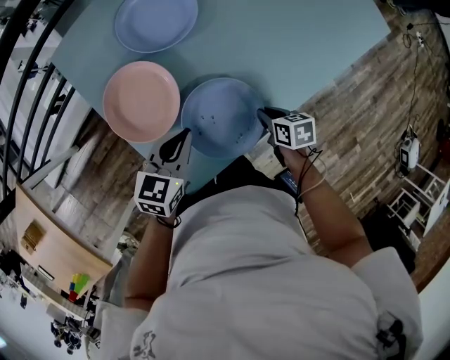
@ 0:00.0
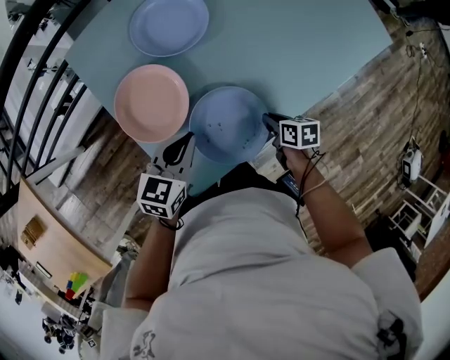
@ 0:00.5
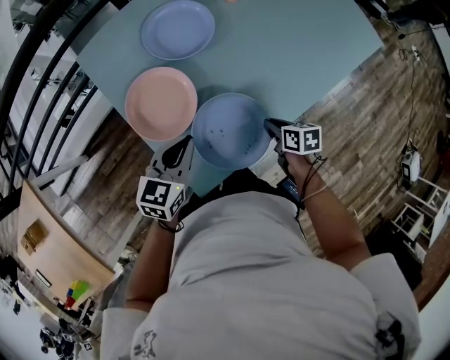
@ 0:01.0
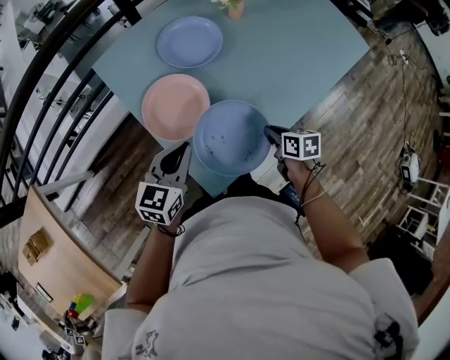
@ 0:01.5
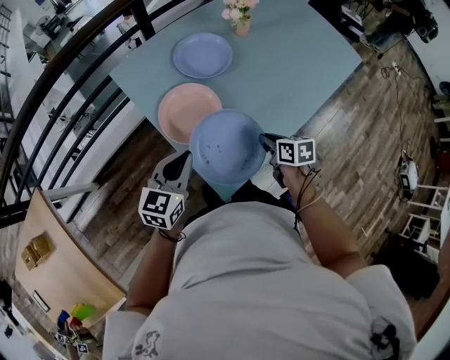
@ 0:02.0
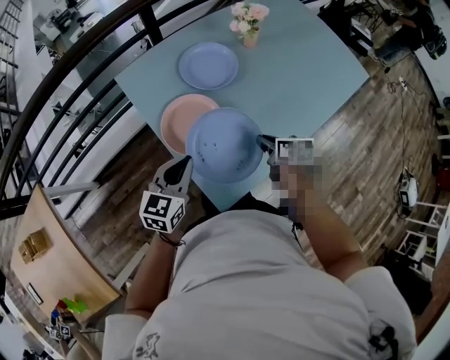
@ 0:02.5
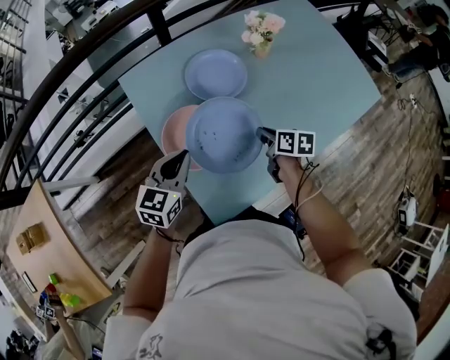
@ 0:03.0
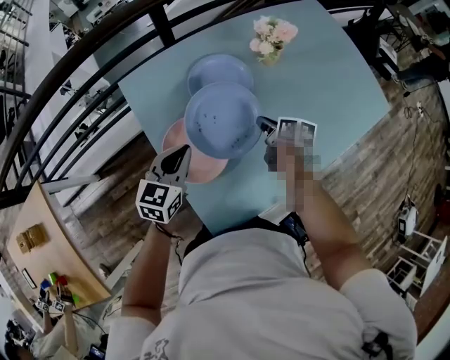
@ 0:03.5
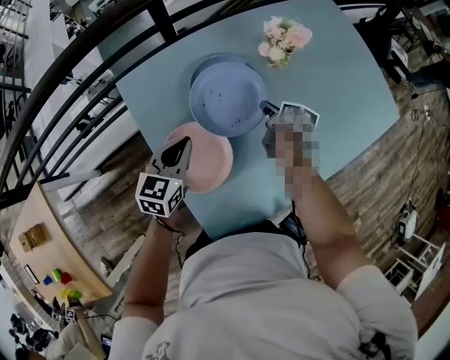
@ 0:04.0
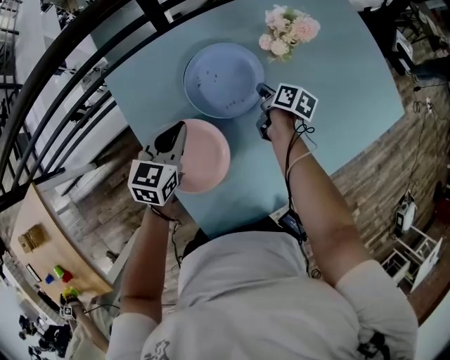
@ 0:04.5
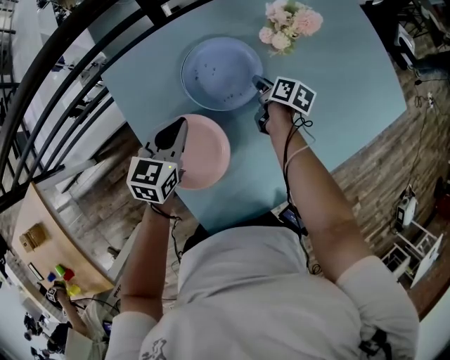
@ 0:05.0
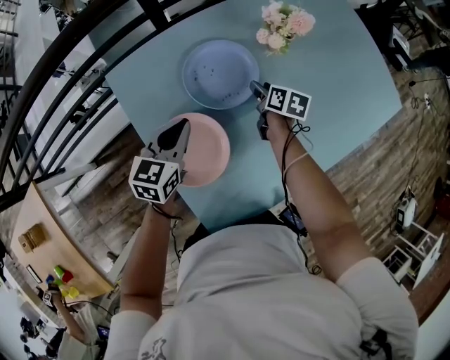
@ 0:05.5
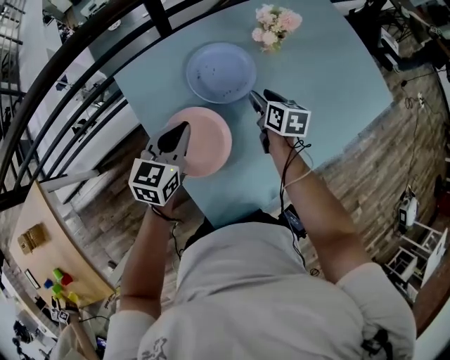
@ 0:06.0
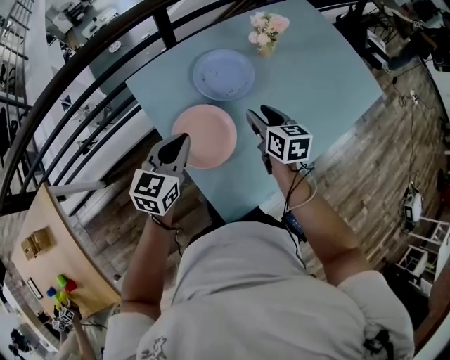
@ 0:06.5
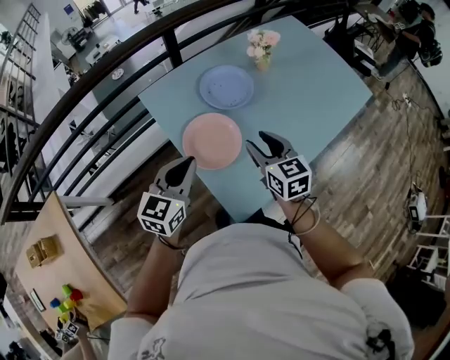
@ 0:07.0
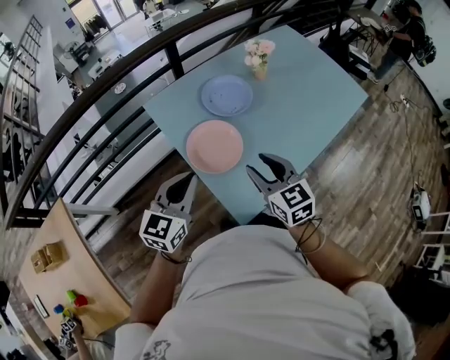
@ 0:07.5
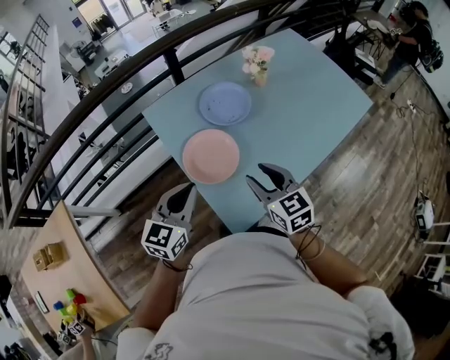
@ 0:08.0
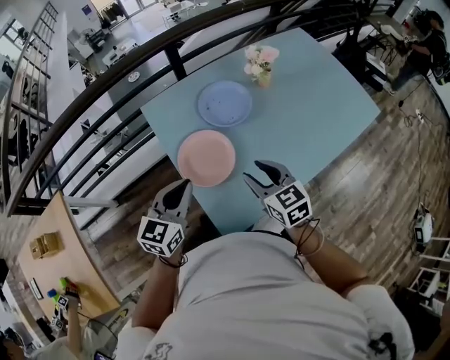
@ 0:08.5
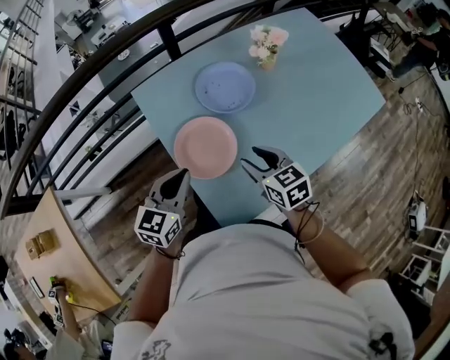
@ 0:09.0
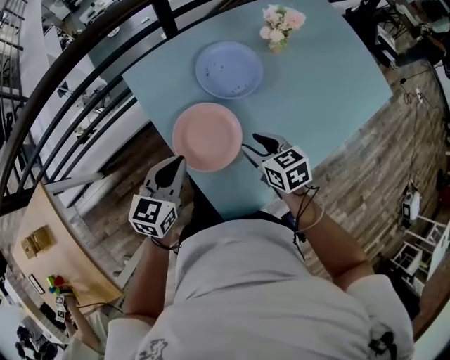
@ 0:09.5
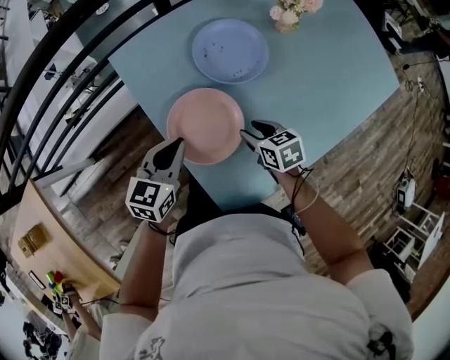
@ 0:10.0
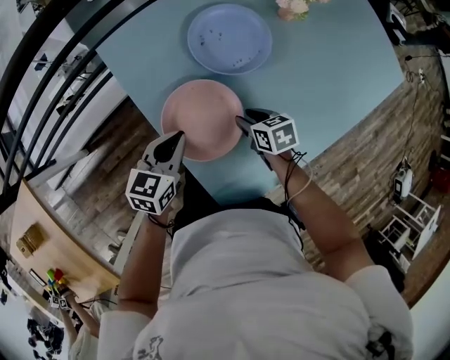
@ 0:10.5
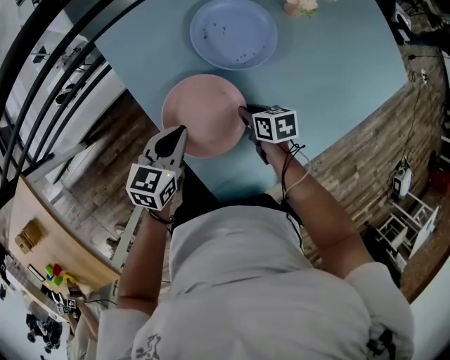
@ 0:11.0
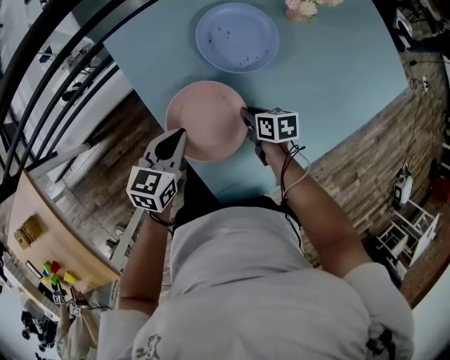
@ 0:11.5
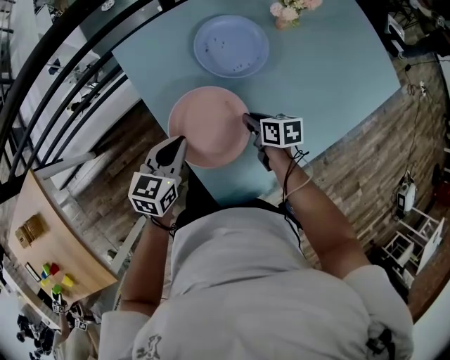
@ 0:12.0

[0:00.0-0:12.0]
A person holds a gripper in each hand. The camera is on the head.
0:00.0 to 0:02.0: The right gripper moves upward and to the left, about 15 cm. The left gripper heads to the left, upward and backward, covering approximately 20 cm.
0:02.0 to 0:04.0: Both grippers move forward, roughly 25 cm.
0:04.0 to 0:06.0: The right gripper is displaced upward by roughly 5 cm, swivels roughly 20 degrees, and opens up.
0:06.0 to 0:08.0: The two grippers go some 30 cm backward and upward. The right gripper changes its angle by about 30 degrees.
0:08.0 to 0:10.0: The grippers both shift downward and forward by some 25 cm. The right gripper changes its angle by about 30 degrees.
0:10.0 to 0:12.0: The right gripper moves approximately 10 cm downward and comes back, and closes up.

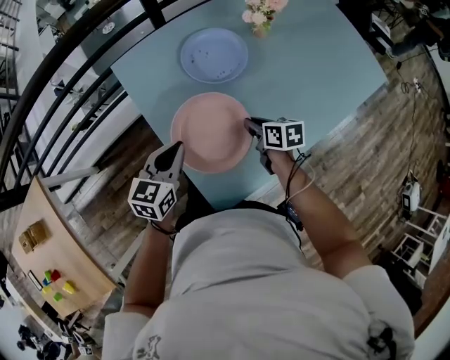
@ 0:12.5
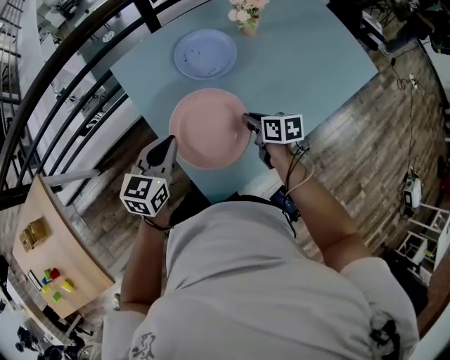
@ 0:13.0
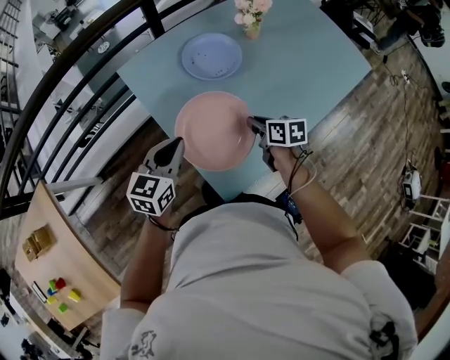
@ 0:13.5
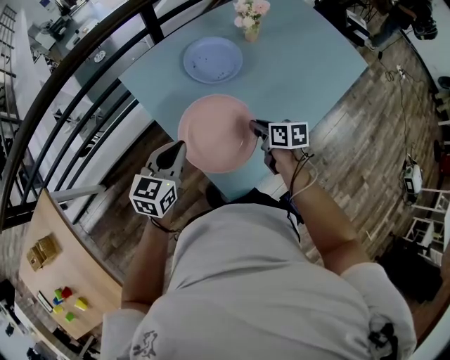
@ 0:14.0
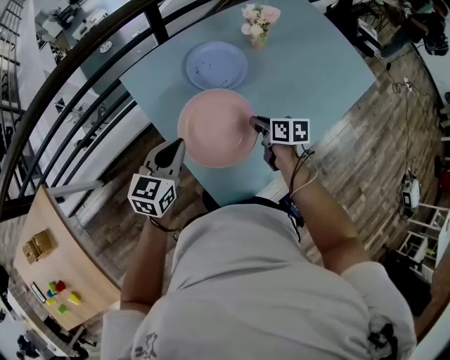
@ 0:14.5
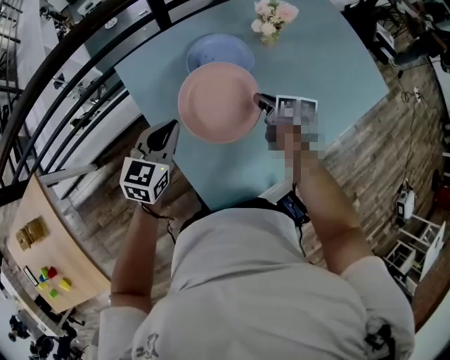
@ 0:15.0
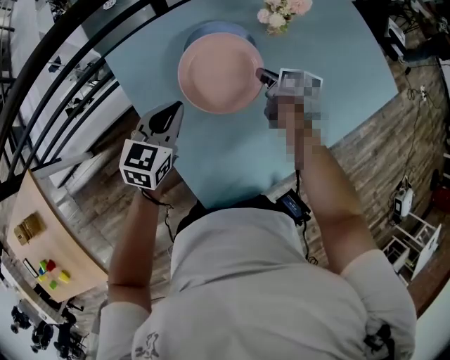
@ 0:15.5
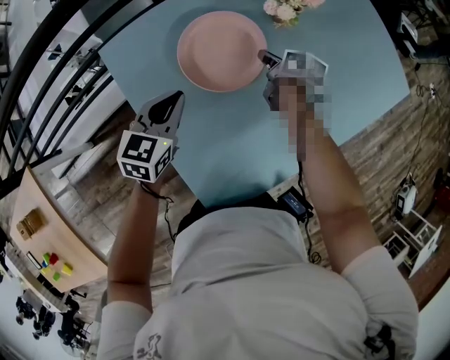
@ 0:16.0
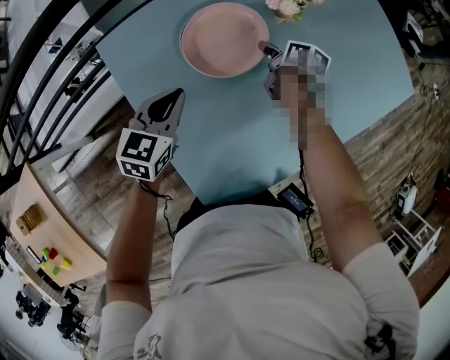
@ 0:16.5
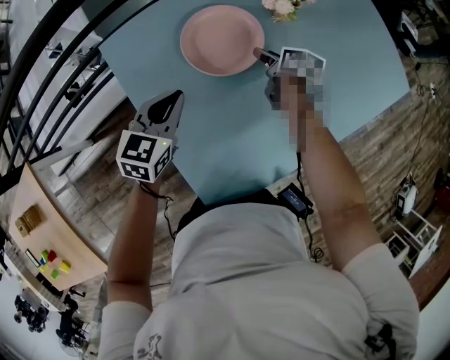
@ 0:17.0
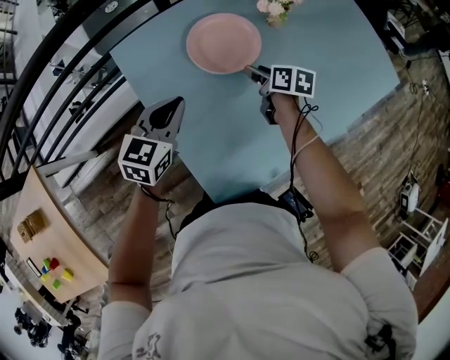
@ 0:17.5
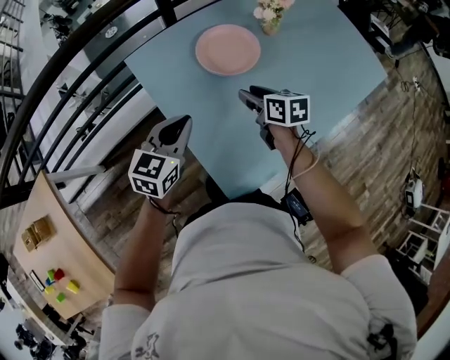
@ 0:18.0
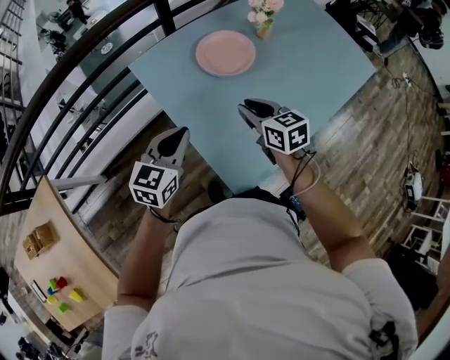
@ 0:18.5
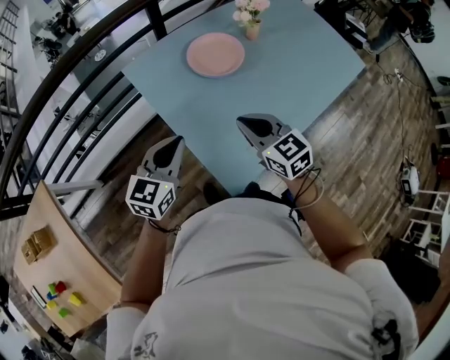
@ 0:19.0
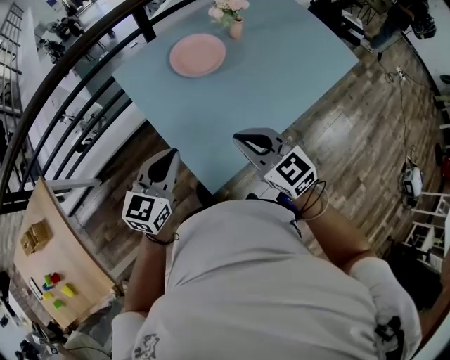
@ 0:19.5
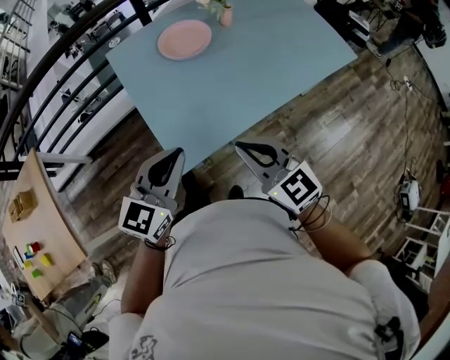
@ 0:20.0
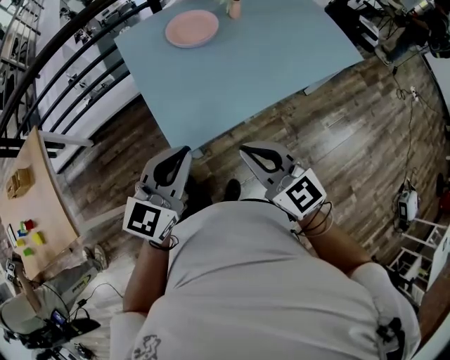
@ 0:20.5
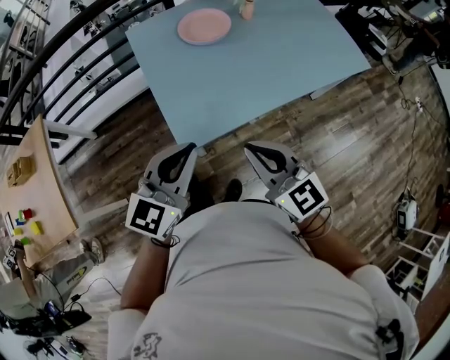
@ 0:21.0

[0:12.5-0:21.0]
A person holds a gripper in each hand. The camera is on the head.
0:12.5 to 0:14.5: The left gripper shifts by some 5 cm.
0:14.5 to 0:16.5: The left gripper is displaced forward and downward by some 15 cm; the right gripper travels forward by roughly 25 cm.
0:16.5 to 0:19.0: The left gripper shifts about 25 cm backward and upward, while the right gripper goes some 40 cm backward and upward, rolls counterclockwise, seen from behind, by some 60 degrees, and opens and closes again.
0:19.0 to 0:21.0: Both grippers travel together backward and to the right, about 30 cm.

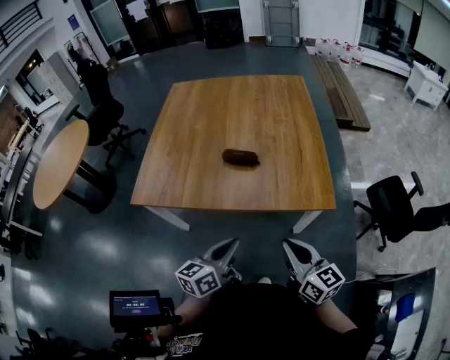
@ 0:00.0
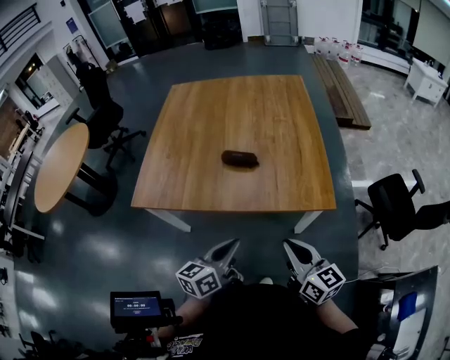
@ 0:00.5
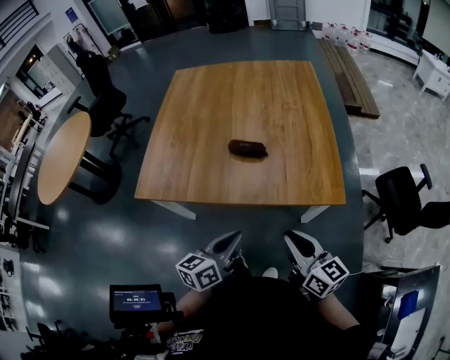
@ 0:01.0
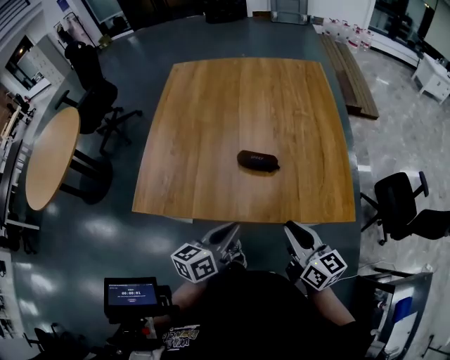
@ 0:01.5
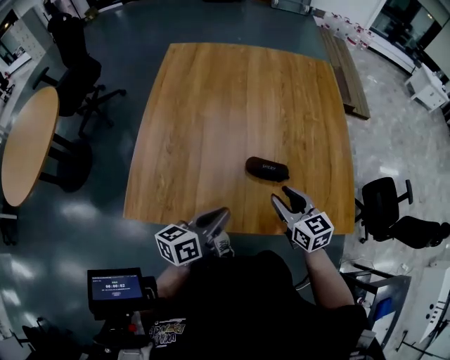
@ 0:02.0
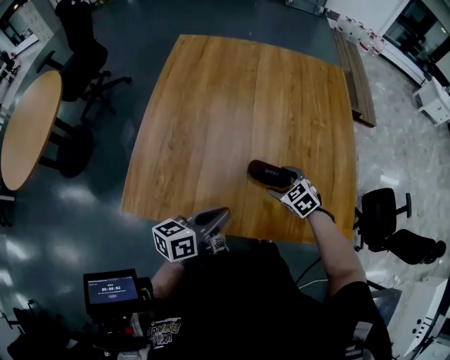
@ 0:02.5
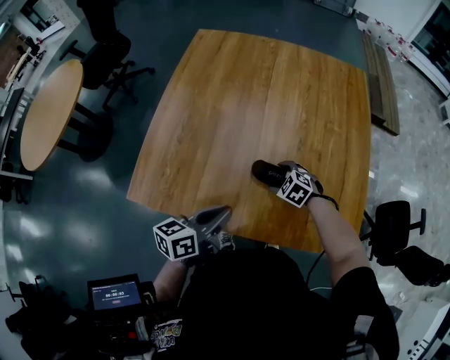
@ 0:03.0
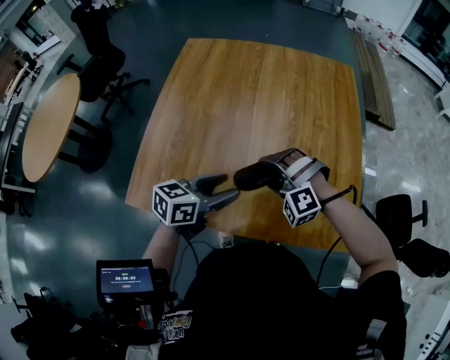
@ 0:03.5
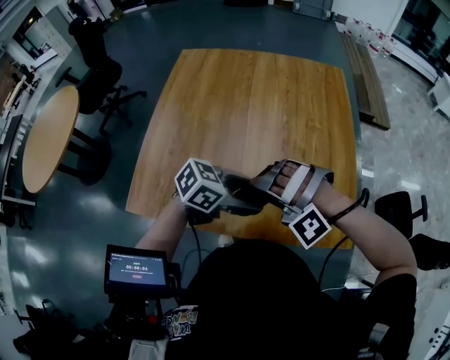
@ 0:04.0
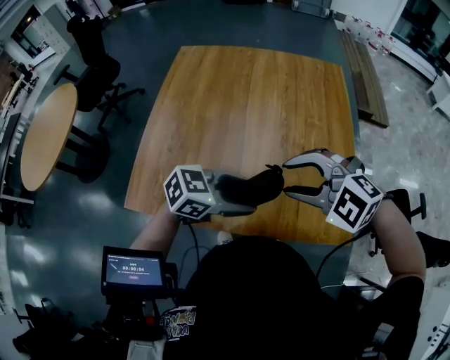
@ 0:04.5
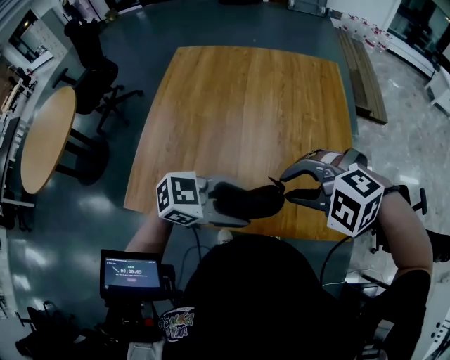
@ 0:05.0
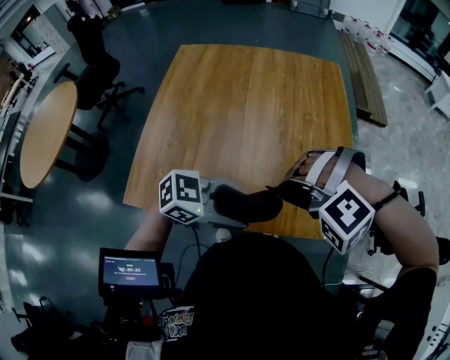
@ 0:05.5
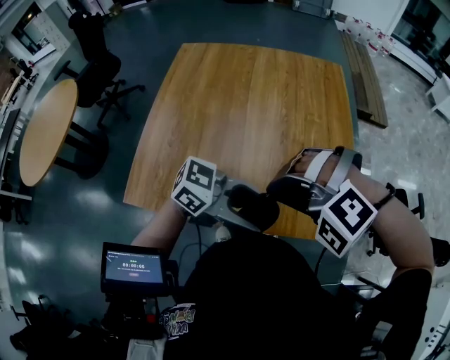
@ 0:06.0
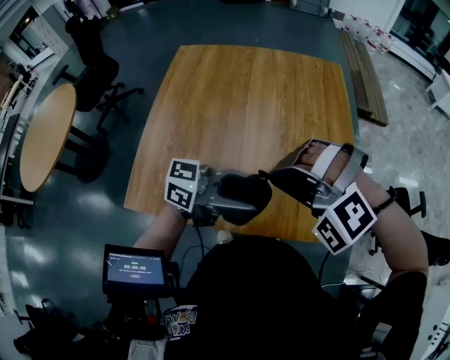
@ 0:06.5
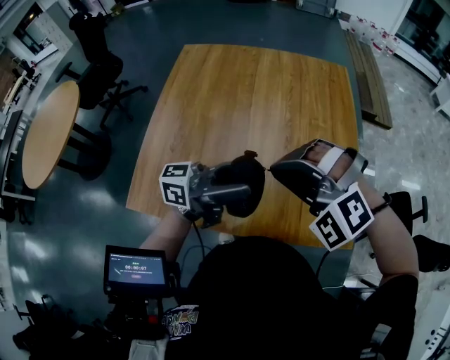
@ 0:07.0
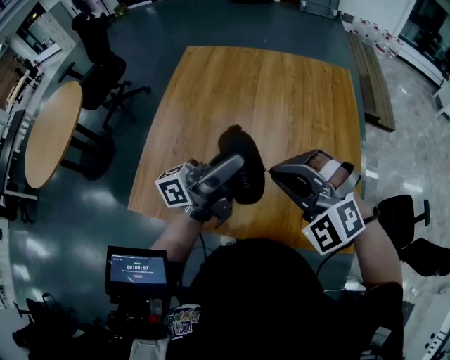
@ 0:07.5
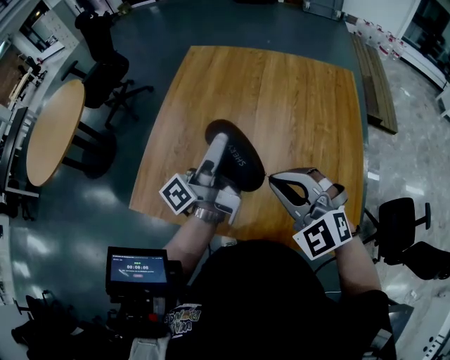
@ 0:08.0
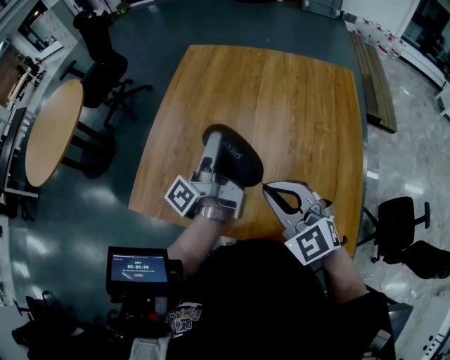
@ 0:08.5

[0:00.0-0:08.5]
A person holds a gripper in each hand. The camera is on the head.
0:00.0 to 0:02.0: Both grippers travel together forward and to the left, some 25 cm. The right gripper swivels about 20 degrees, and opens up.
0:02.0 to 0:04.0: The right gripper moves about 15 cm downward and comes back, rolls counterclockwise, seen from behind, by some 110 degrees, and opens its fingers, while the left gripper moves some 15 cm, swivels roughly 50 degrees, and opens up.
0:04.0 to 0:06.5: The two grippers go some 10 cm upward. The right gripper closes; the left gripper tips its fingers upward by some 40 degrees.
0:06.5 to 0:08.5: The left gripper shifts by about 20 cm, and changes its angle by roughly 90 degrees. The right gripper heads downward, covering some 5 cm, and twists approximately 50 degrees clockwise, seen from behind.
